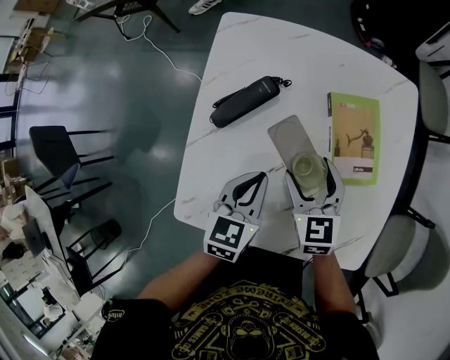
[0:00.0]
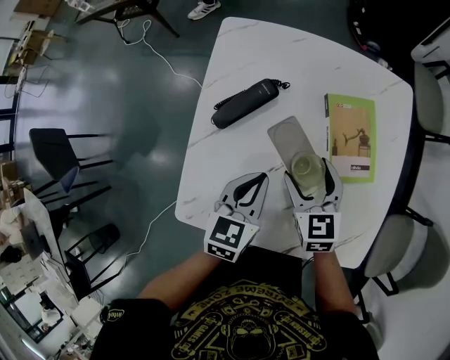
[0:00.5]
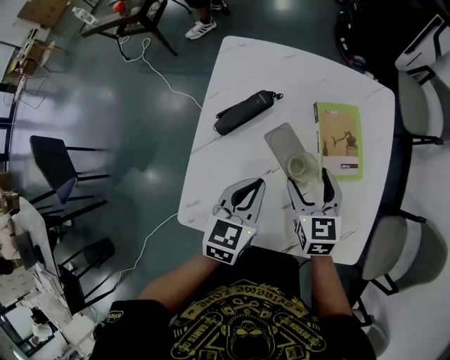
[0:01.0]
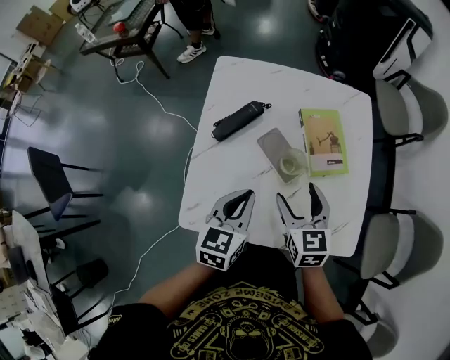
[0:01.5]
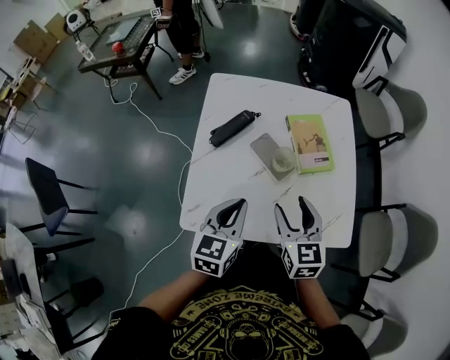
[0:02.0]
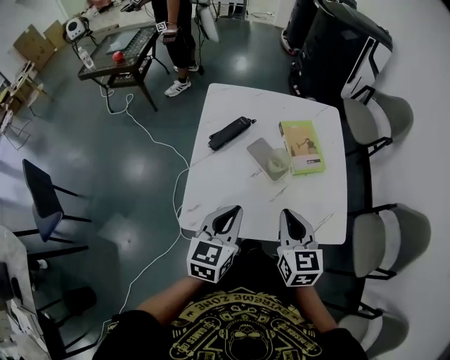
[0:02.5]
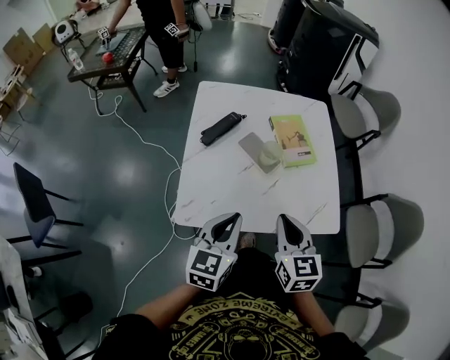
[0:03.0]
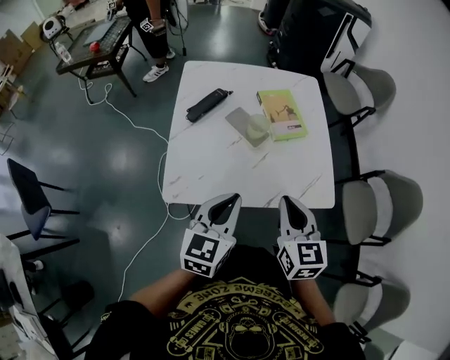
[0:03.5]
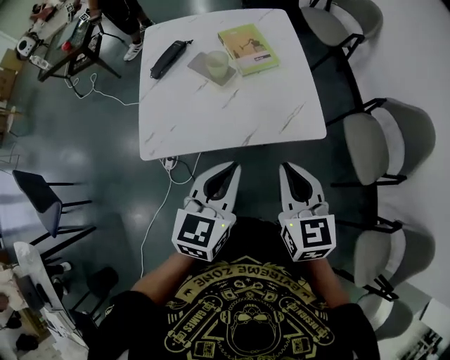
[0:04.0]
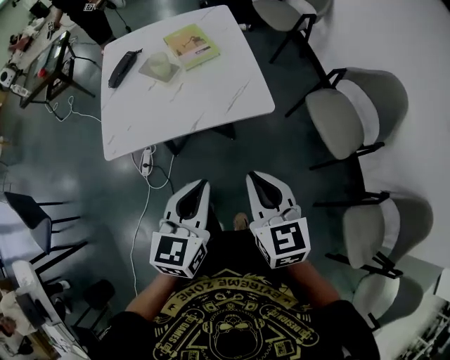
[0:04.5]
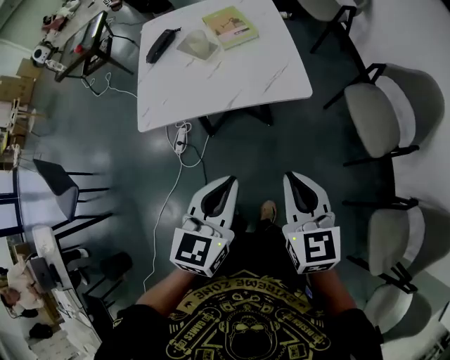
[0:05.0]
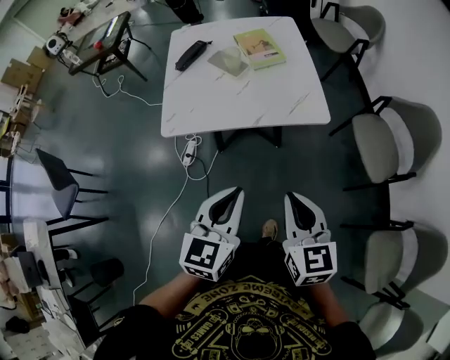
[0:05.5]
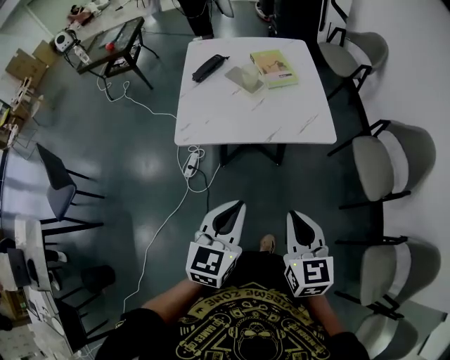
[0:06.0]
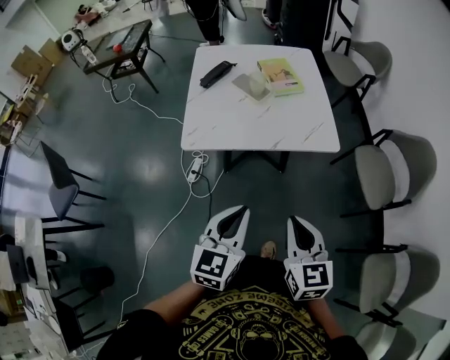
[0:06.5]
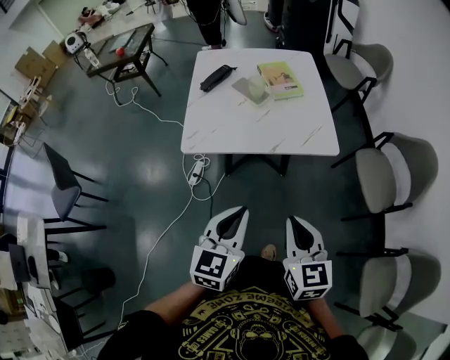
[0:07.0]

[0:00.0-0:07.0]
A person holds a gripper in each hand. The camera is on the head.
0:00.0 to 0:02.0: Both grippers move backward and upward, roughly 20 cm.
0:02.0 to 0:03.5: The grippers both shift backward and upward by about 10 cm. The right gripper closes.
0:03.5 to 0:05.0: The two grippers go about 30 cm backward and to the right.
0:05.0 to 0:07.0: Both grippers move to the left, about 10 cm.

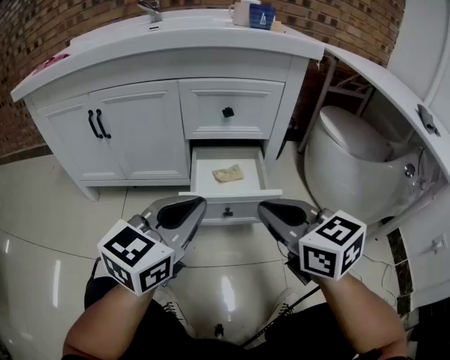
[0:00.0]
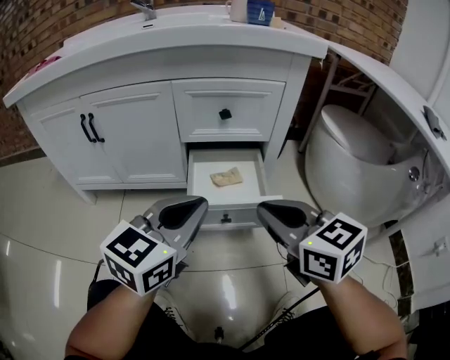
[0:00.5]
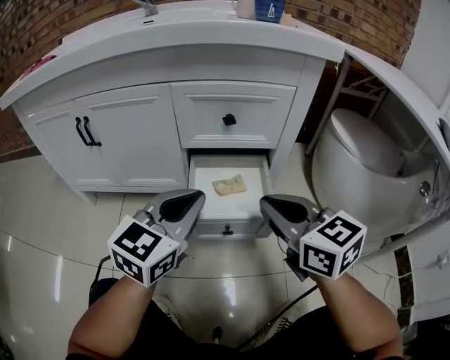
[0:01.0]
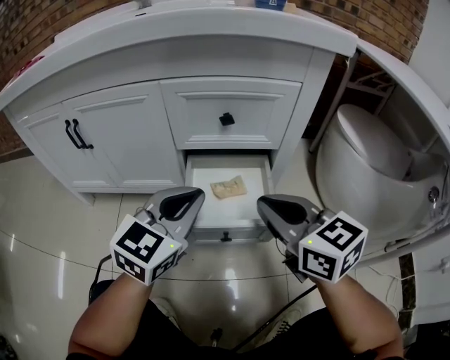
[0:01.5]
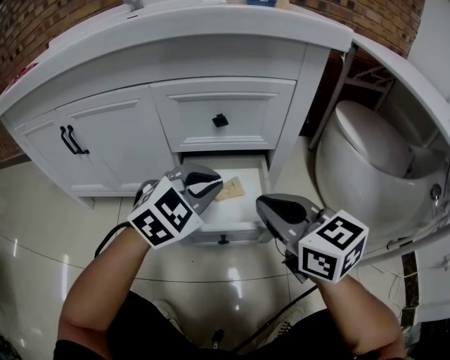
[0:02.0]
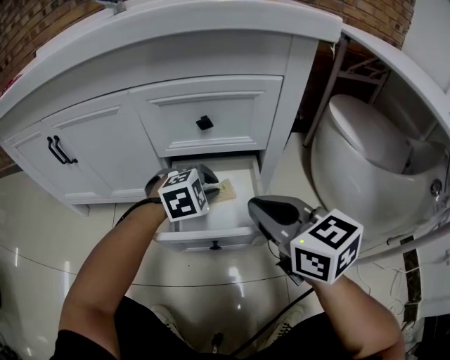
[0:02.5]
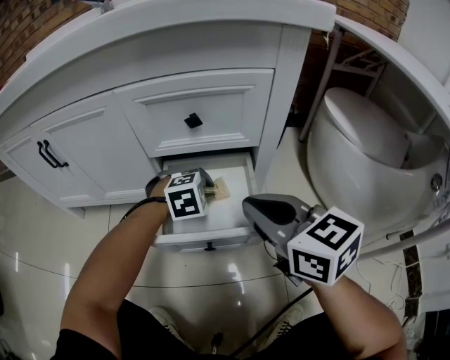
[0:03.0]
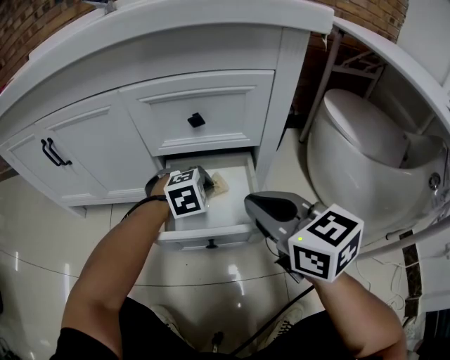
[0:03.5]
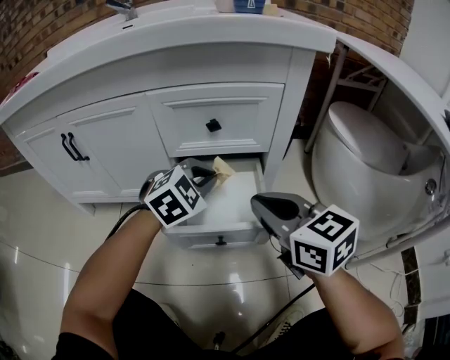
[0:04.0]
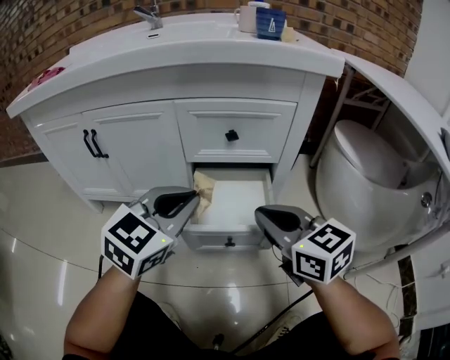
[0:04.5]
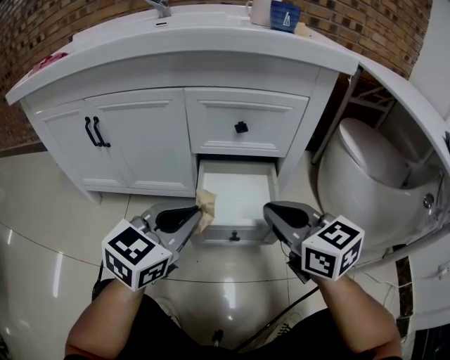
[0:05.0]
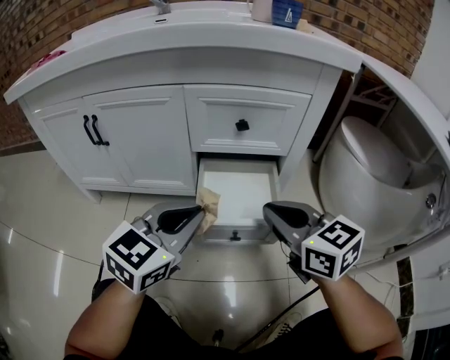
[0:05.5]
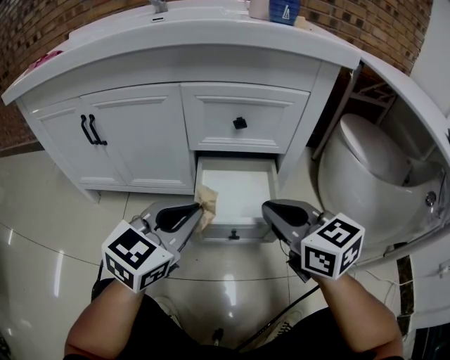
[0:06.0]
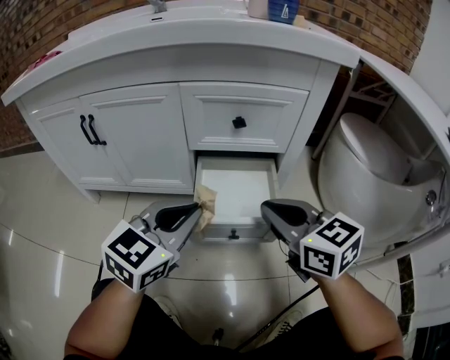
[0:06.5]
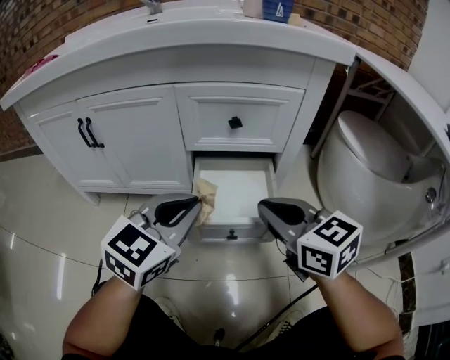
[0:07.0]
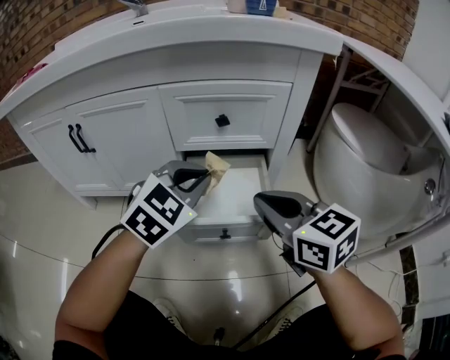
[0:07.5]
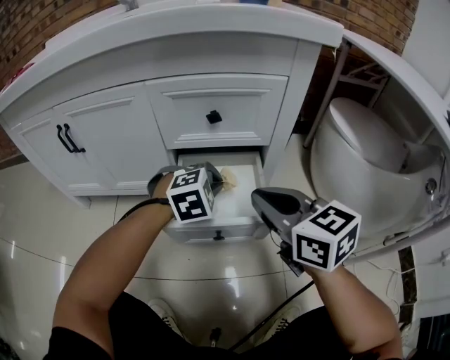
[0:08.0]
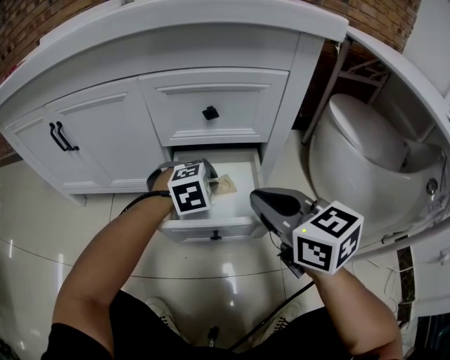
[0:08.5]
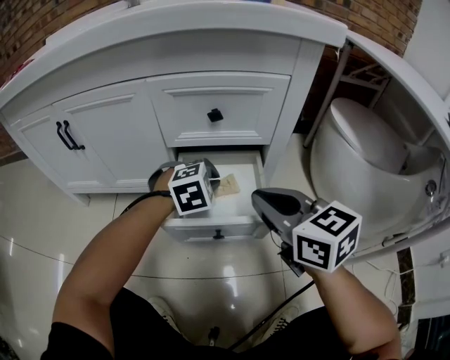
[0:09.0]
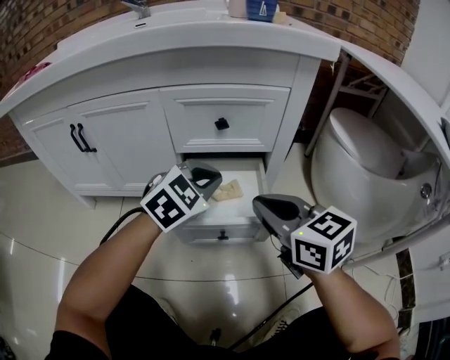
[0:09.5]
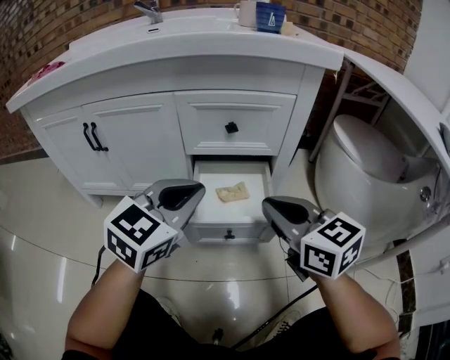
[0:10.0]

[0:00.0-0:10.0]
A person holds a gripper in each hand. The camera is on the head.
0:00.0 to 0:02.0: The left gripper heads forward and downward, covering approximately 20 cm, and swivels some 40 degrees; the right gripper heads forward, covering some 10 cm.
0:02.0 to 0:04.0: The left gripper moves some 15 cm downward and comes back.
0:04.0 to 0:06.0: The left gripper shifts some 15 cm backward, to the left and upward, and swivels about 40 degrees.
0:06.0 to 0:08.0: The left gripper heads downward, forward and to the right, covering some 20 cm, and tilts its fingers about 40 degrees downward.
0:08.0 to 0:10.0: The left gripper heads upward, backward and to the left, covering about 20 cm, and tilts its fingers approximately 40 degrees upward.

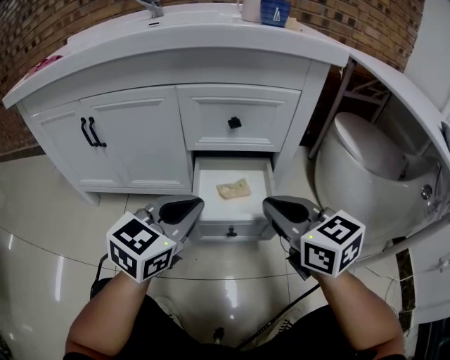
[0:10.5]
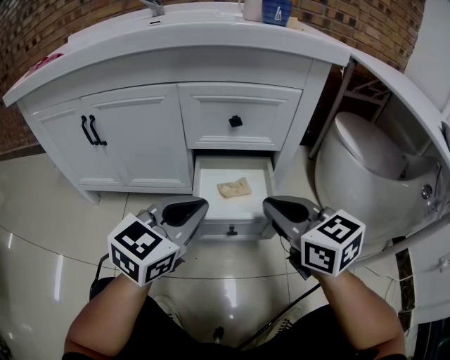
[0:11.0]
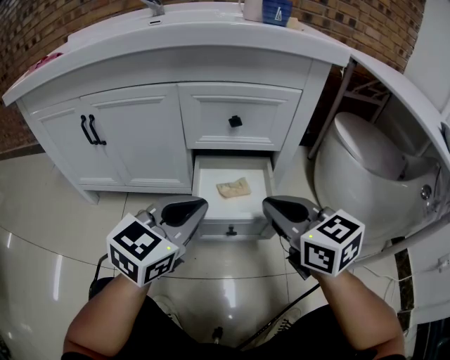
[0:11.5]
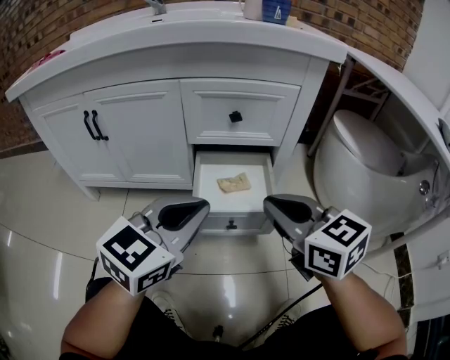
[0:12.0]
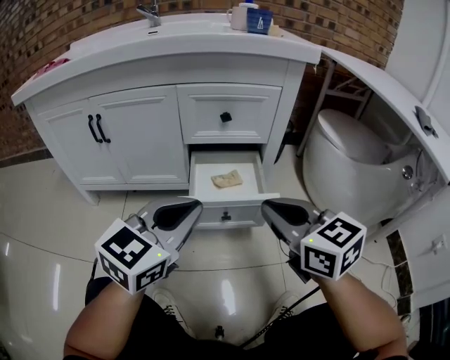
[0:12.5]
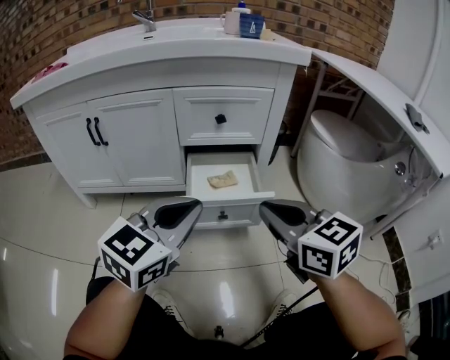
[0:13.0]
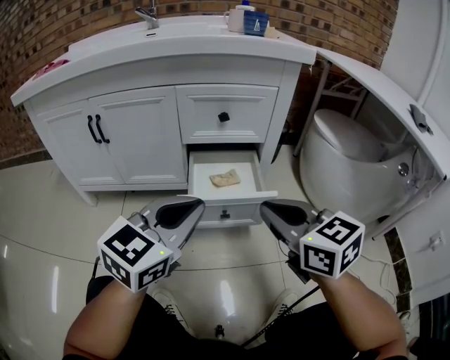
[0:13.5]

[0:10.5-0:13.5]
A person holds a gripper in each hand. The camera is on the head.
0:10.5 to 0:12.0: The left gripper shifts by approximately 5 cm.
0:12.0 to 0:13.5: Both grippers move backward, about 5 cm.

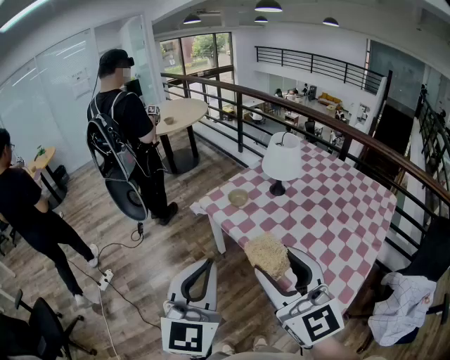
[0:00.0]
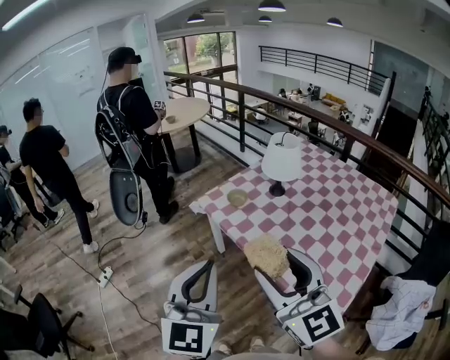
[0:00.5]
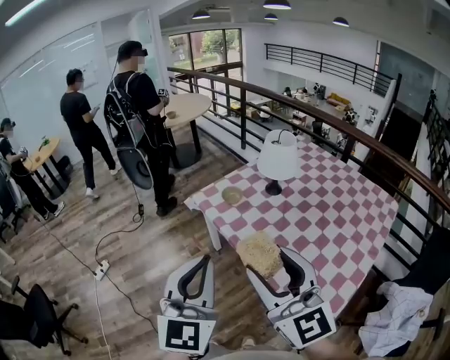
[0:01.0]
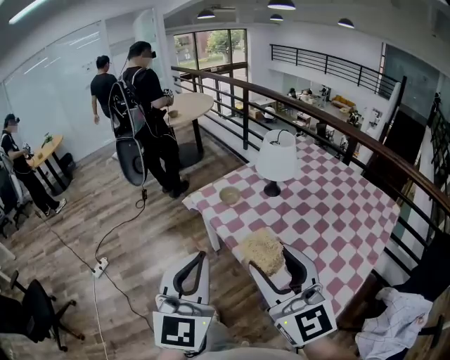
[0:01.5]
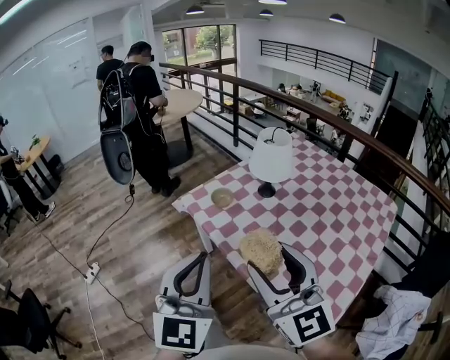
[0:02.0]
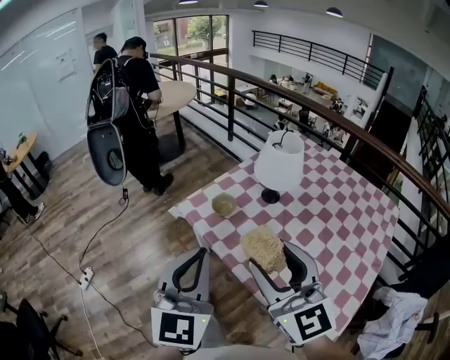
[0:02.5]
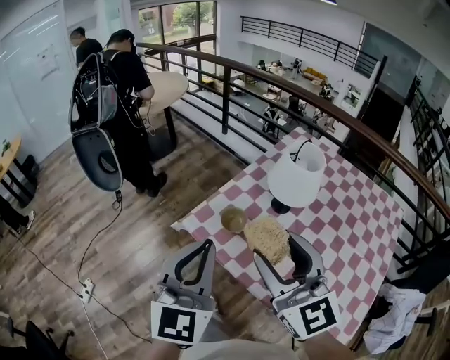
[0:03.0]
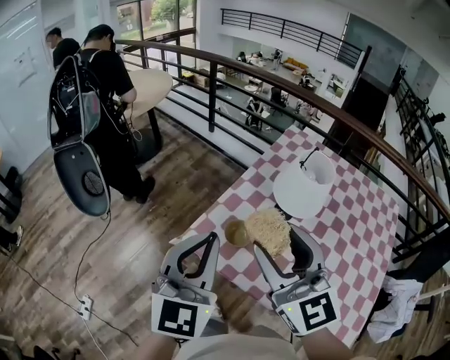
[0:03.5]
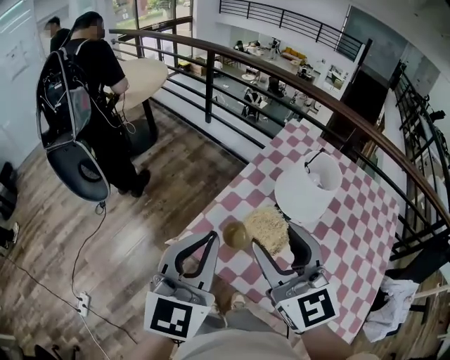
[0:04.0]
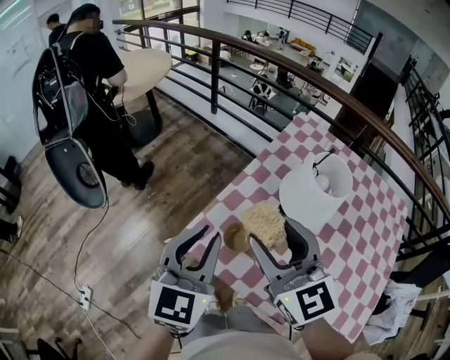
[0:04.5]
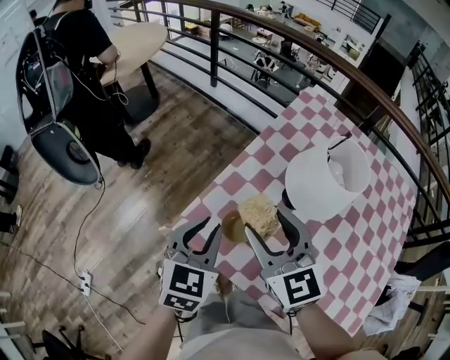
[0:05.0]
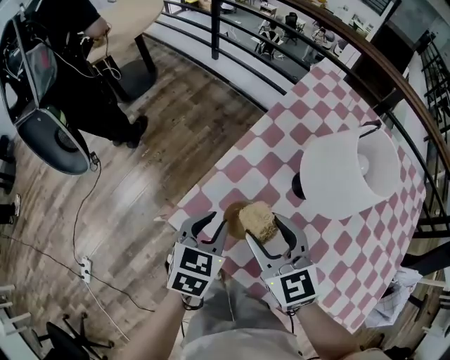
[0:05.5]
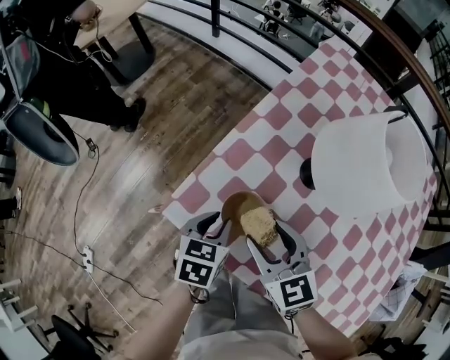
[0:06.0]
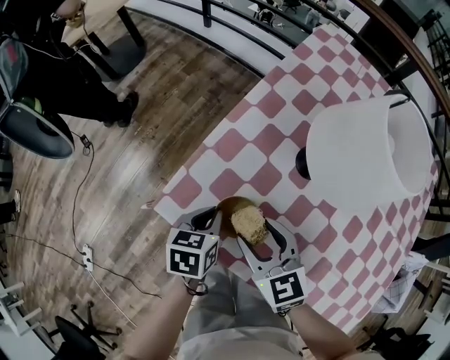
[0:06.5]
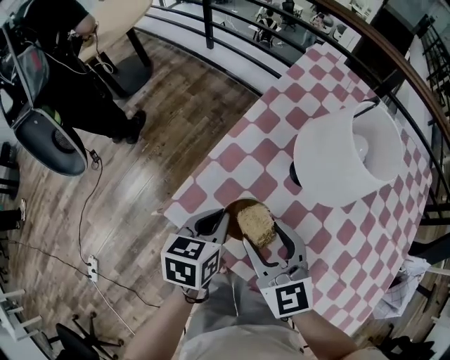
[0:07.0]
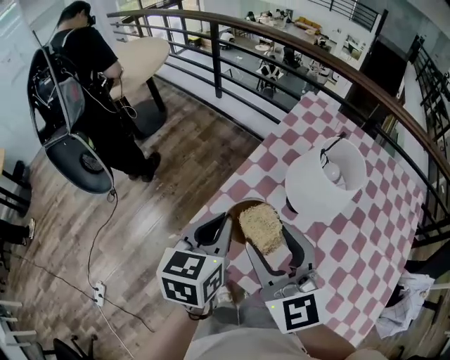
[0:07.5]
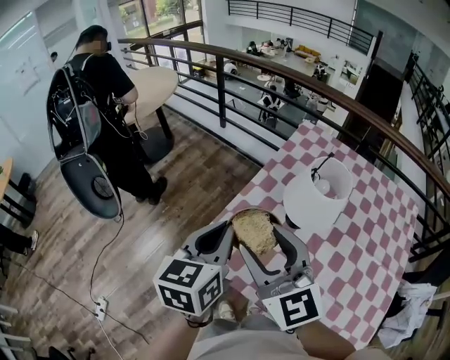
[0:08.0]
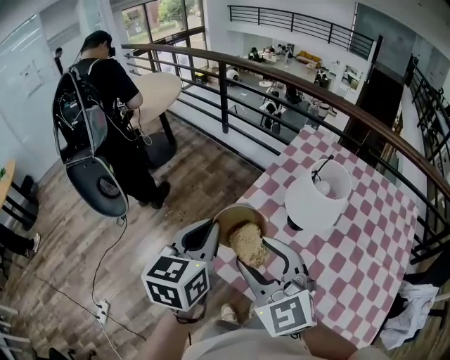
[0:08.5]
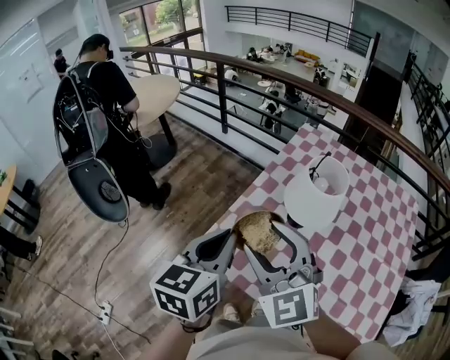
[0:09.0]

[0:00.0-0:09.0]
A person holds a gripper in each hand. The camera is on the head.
0:00.0 to 0:02.0: Both grippers move to the right and forward, roughly 10 cm.
0:02.0 to 0:04.5: The two grippers travel together, forward, roughly 50 cm. The left gripper changes its angle by some 30 degrees.
0:04.5 to 0:07.0: The two grippers go roughly 25 cm downward. The left gripper changes its angle by approximately 40 degrees.
0:07.0 to 0:09.0: Both grippers travel together upward, some 25 cm. The left gripper turns by approximately 20 degrees. Meanwhile the right gripper rotates some 30 degrees.
